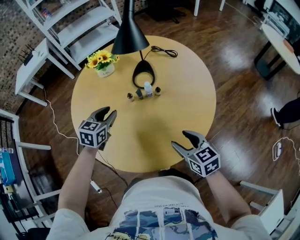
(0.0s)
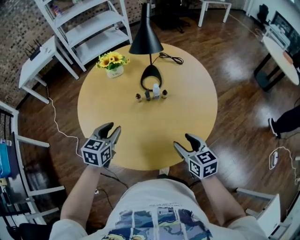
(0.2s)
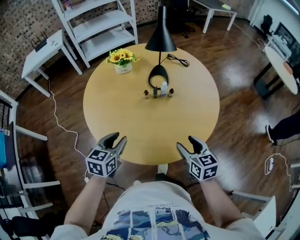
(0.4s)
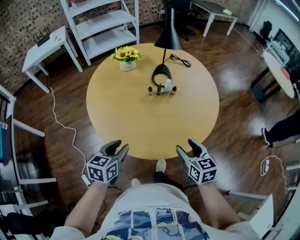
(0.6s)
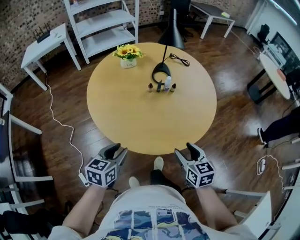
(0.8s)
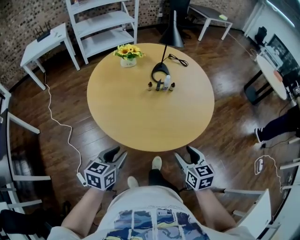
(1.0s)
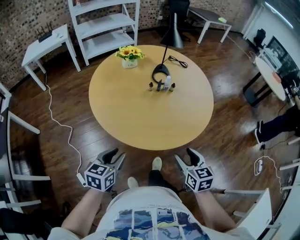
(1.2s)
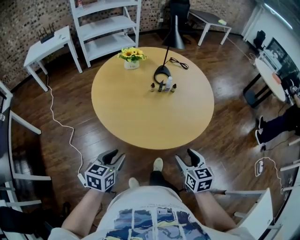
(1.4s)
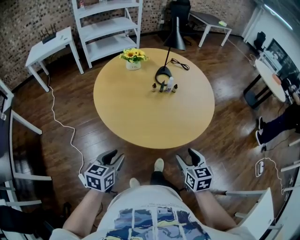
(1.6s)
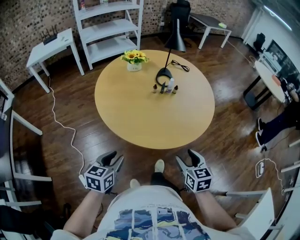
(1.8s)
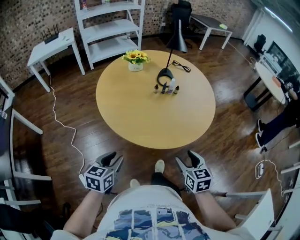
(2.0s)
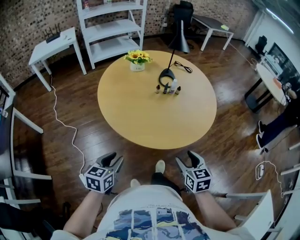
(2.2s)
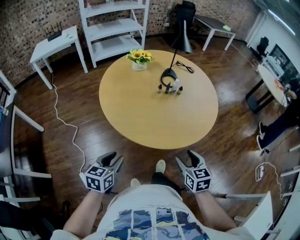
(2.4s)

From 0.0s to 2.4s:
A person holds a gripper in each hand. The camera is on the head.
From 0.0s to 1.2s: The right gripper heads backward and to the left, covering some 25 cm. The left gripper shifts approximately 40 cm backward.
From 1.2s to 2.4s: The right gripper ends up about 5 cm from where it was. The left gripper travels to the left and backward by approximately 10 cm.

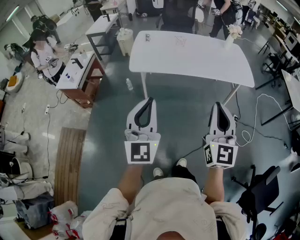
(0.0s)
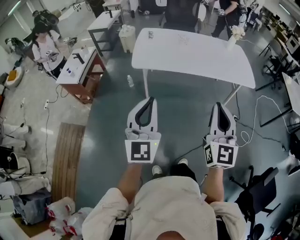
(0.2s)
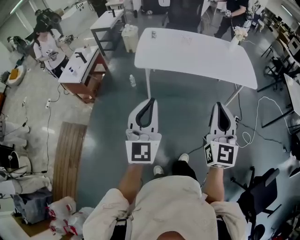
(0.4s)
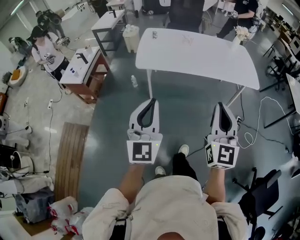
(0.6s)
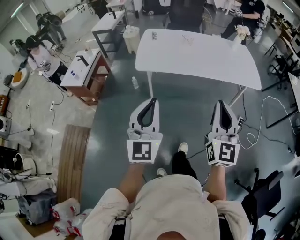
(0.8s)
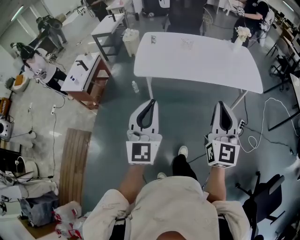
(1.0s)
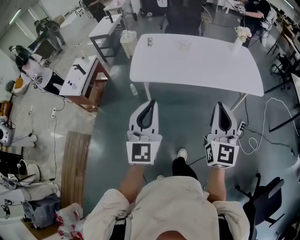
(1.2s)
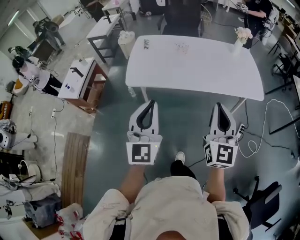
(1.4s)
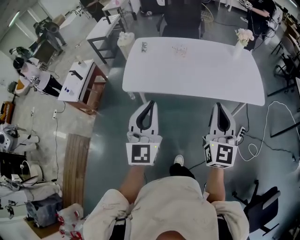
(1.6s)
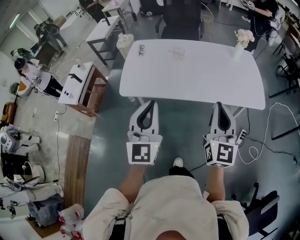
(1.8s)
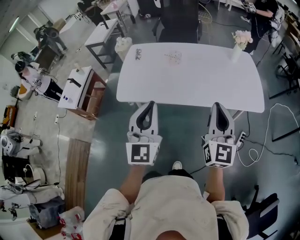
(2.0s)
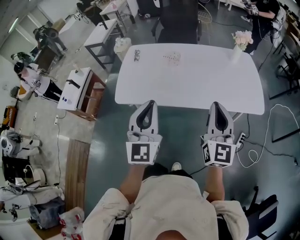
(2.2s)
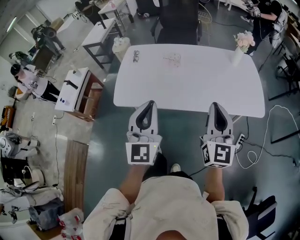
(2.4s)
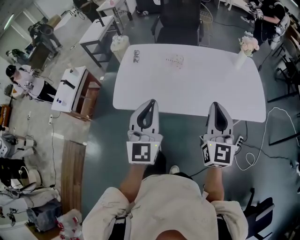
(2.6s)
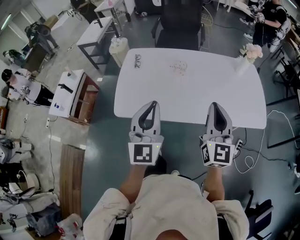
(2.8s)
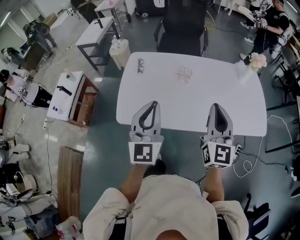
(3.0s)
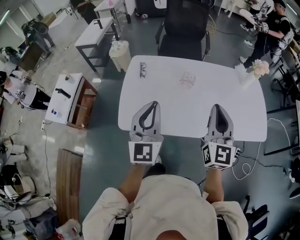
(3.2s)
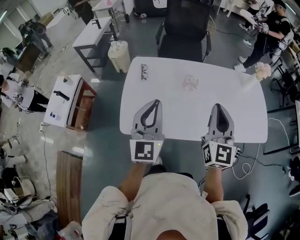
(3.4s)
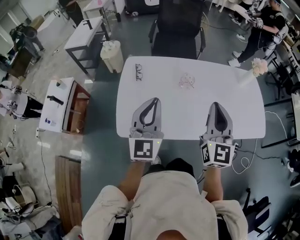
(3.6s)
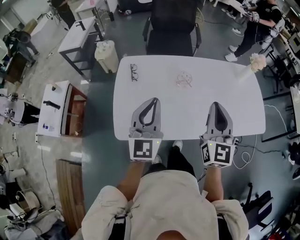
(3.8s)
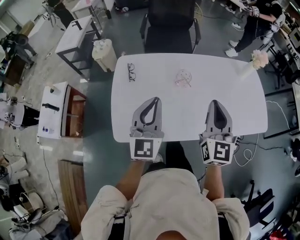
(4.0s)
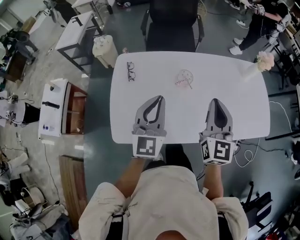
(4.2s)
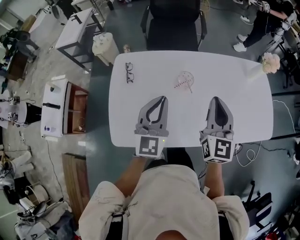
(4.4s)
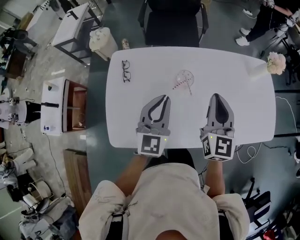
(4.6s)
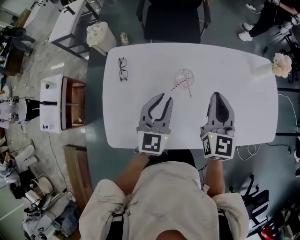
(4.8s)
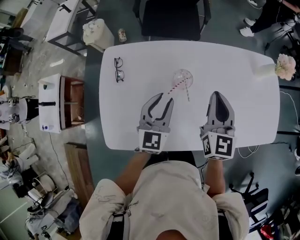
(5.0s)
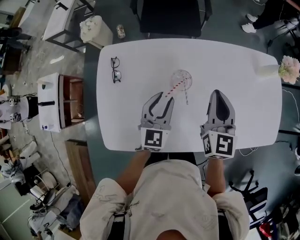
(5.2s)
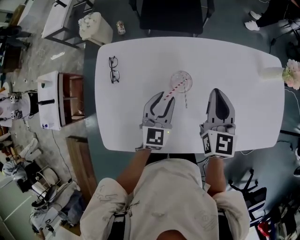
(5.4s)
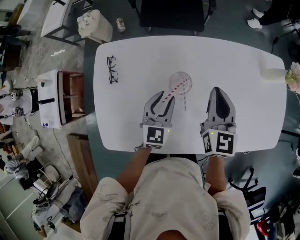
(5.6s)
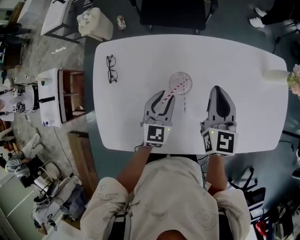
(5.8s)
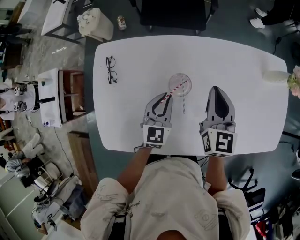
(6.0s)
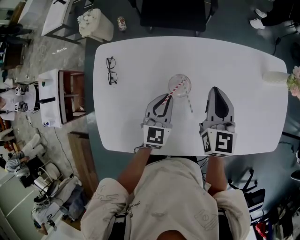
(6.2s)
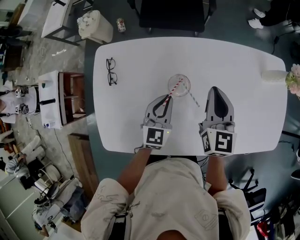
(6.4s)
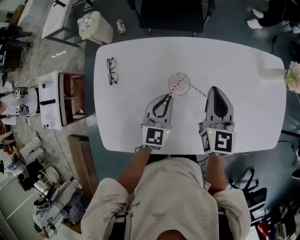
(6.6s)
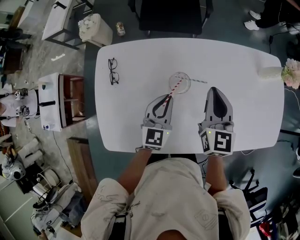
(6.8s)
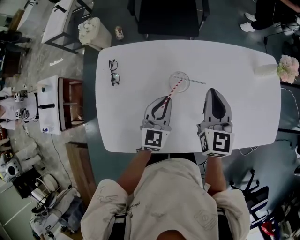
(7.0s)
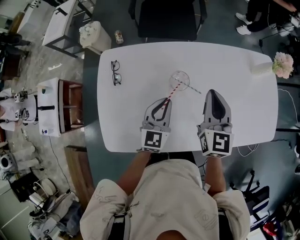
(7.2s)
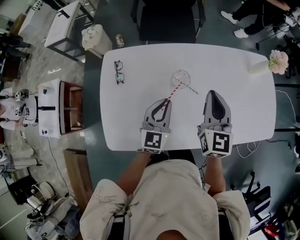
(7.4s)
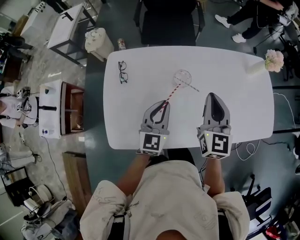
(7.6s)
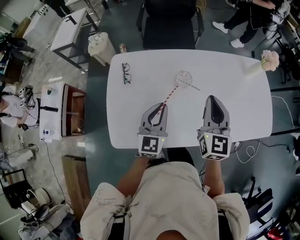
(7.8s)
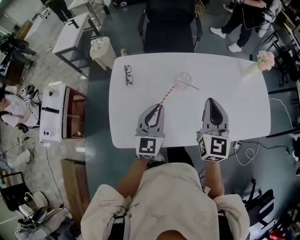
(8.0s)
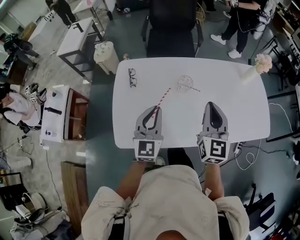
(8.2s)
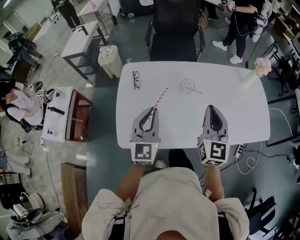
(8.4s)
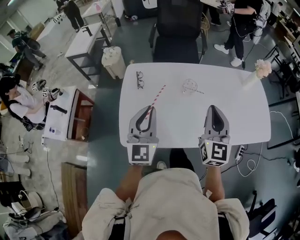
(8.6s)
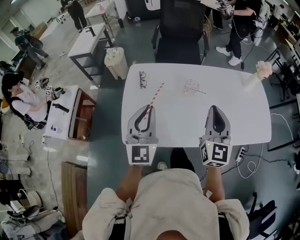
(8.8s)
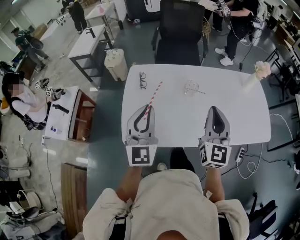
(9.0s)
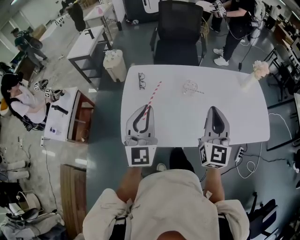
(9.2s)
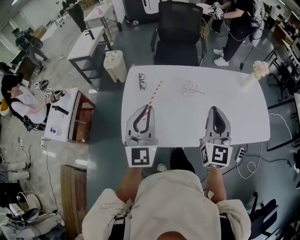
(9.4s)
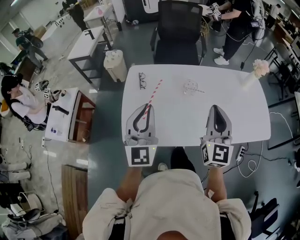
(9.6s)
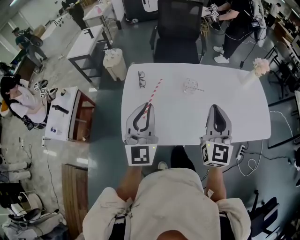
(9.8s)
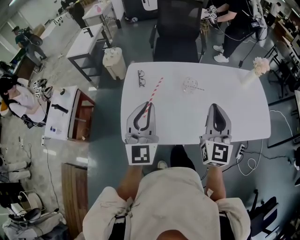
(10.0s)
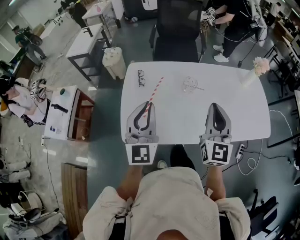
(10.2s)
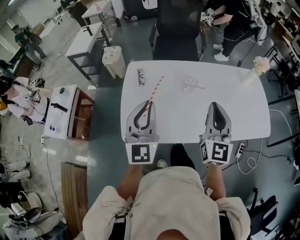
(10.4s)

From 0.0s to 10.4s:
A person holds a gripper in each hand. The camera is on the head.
From 0.0s to 1.4s: Both grippers travel together forward, approximately 20 cm.
From 1.4s to 3.0s: The two grippers go roughly 30 cm forward.
From 3.0s to 4.4s: The right gripper moves forward, some 20 cm; the left gripper shifts some 25 cm forward and downward.
From 4.4s to 6.0s: The left gripper moves downward and forward, roughly 25 cm, changes its angle by about 20 degrees, and opens, then closes once more. The right gripper shifts some 20 cm forward and downward.
From 6.0s to 7.4s: The right gripper shifts some 10 cm backward and upward, while the left gripper shifts roughly 10 cm upward and backward.
From 7.4s to 9.0s: The left gripper heads upward, backward and to the left, covering roughly 30 cm, and turns by about 30 degrees. The right gripper goes some 20 cm backward and upward.
From 9.0s to 10.4s: Both grippers stay about where they are.

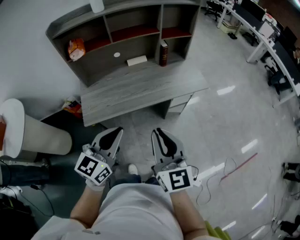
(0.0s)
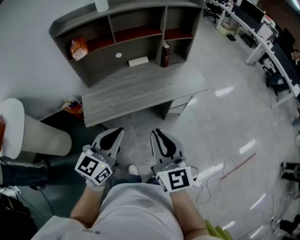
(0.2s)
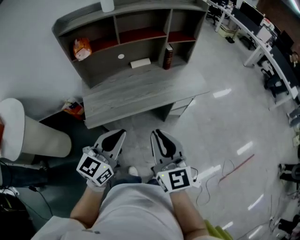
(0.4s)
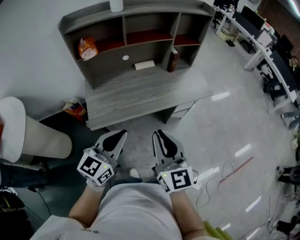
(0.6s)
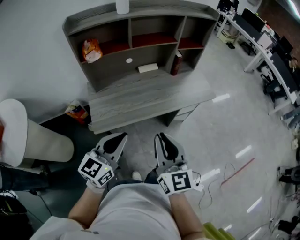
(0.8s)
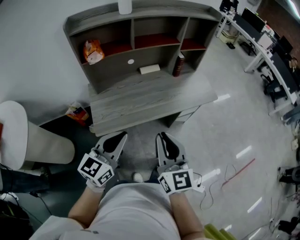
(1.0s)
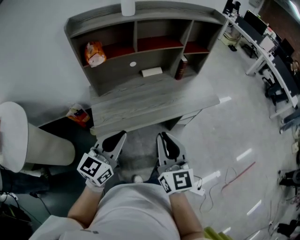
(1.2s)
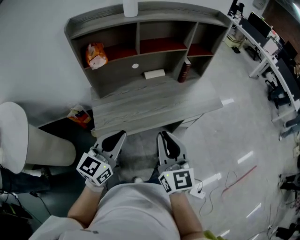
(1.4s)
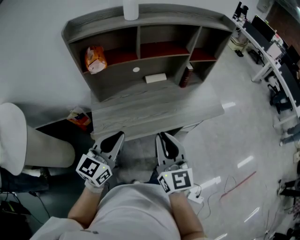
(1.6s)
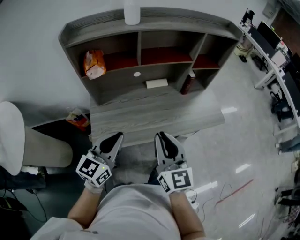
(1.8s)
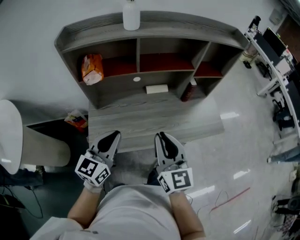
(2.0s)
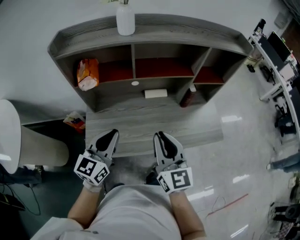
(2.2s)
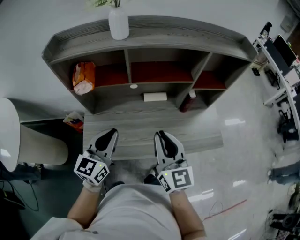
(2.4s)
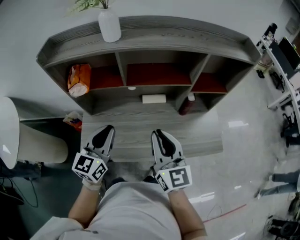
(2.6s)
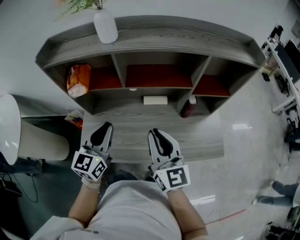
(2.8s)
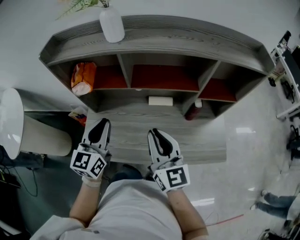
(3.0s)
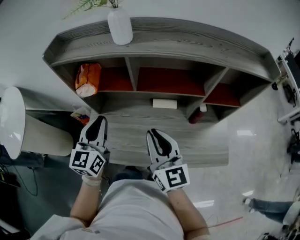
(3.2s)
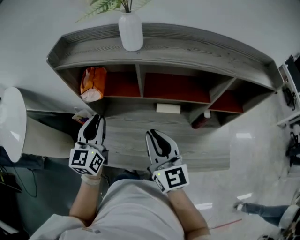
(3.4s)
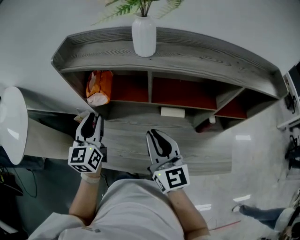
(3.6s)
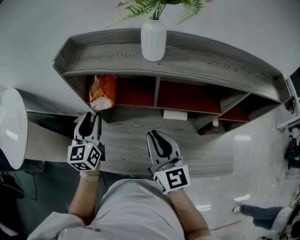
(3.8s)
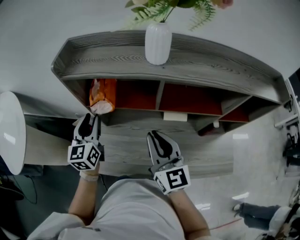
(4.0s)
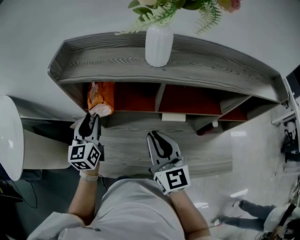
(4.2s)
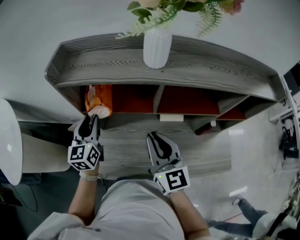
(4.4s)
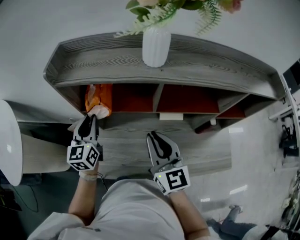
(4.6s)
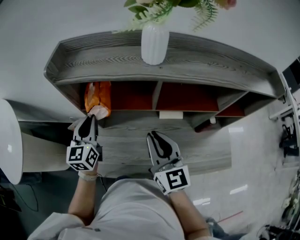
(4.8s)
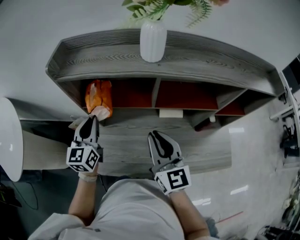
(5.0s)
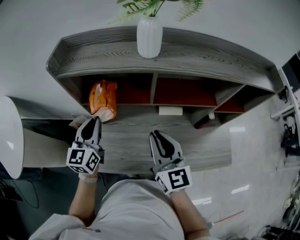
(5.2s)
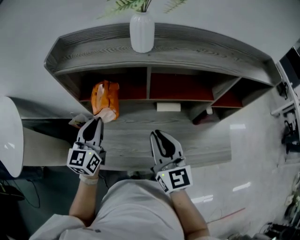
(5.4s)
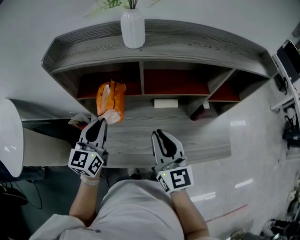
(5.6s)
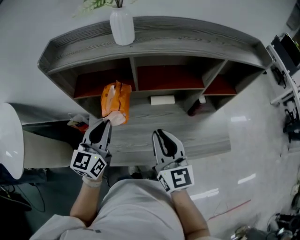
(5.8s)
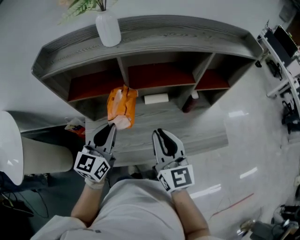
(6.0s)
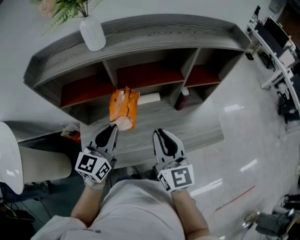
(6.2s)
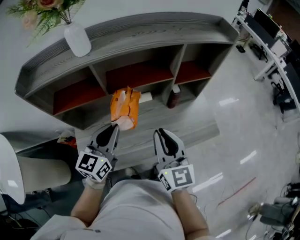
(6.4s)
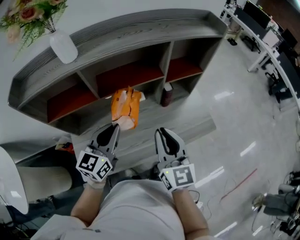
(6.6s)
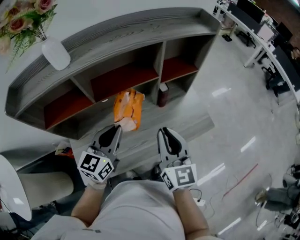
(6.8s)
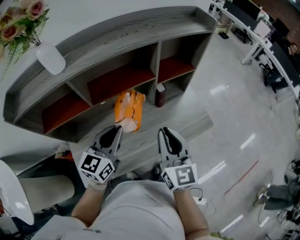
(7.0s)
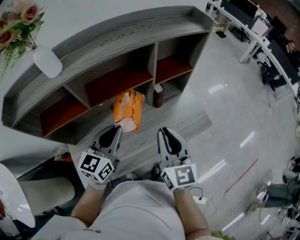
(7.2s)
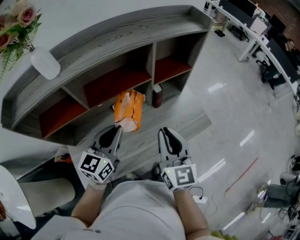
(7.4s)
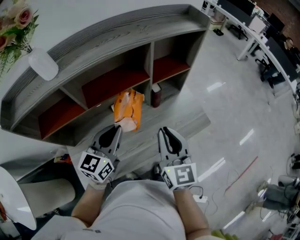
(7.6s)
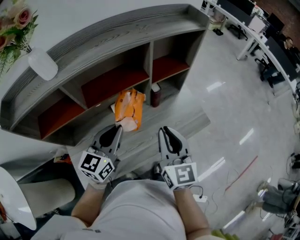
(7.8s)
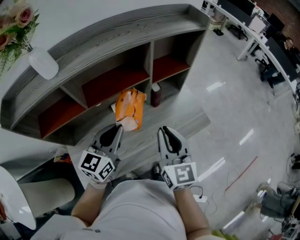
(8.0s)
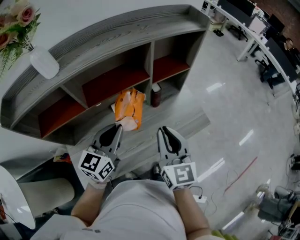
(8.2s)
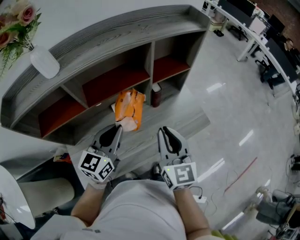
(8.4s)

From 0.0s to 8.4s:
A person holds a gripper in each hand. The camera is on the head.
From 0.0s to 1.4s: Both grippers move to the left and forward, approximately 15 cm.
From 1.4s to 2.8s: The left gripper ends up approximately 25 cm from where it was, and turns by roughly 30 degrees; the right gripper ends up some 30 cm from where it was, and swivels roughly 20 degrees.
From 2.8s to 4.2s: The right gripper moves forward and to the left, approximately 20 cm. Meanwhile the left gripper heads to the left and forward, covering about 25 cm, turns by some 20 degrees, and opens up.
From 4.2s to 5.6s: Both grippers travel together backward and to the right, roughly 10 cm. The left gripper closes its fingers.
From 5.6s to 7.0s: The left gripper shifts by roughly 25 cm, and rotates roughly 30 degrees. Meanwhile the right gripper changes place by roughly 20 cm, and swivels about 30 degrees.
From 7.0s to 8.4s: The grippers stay close to where they were, moving slightly.

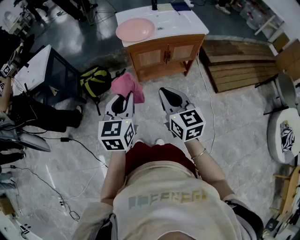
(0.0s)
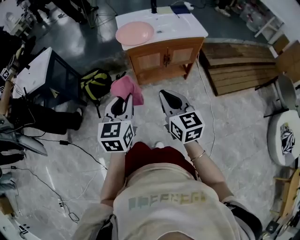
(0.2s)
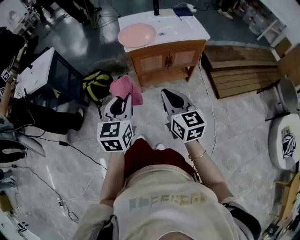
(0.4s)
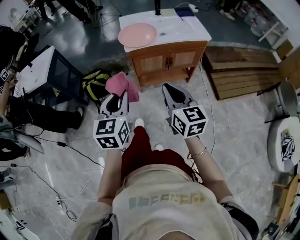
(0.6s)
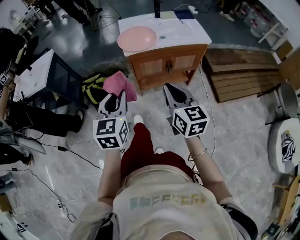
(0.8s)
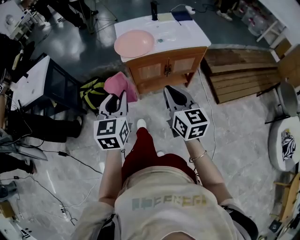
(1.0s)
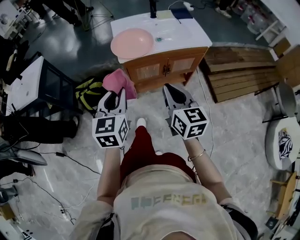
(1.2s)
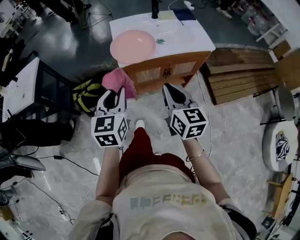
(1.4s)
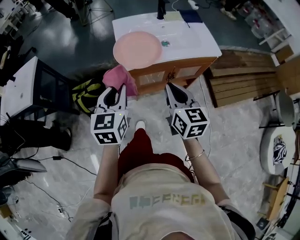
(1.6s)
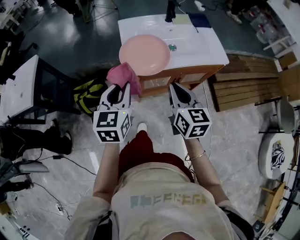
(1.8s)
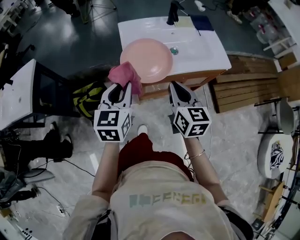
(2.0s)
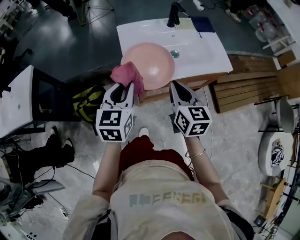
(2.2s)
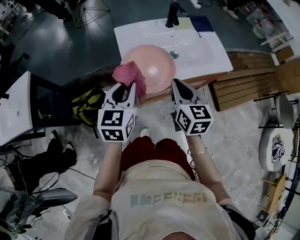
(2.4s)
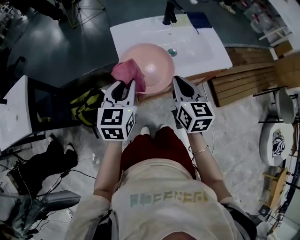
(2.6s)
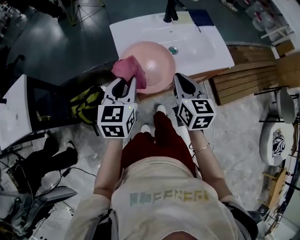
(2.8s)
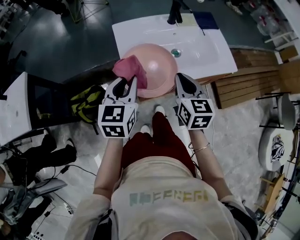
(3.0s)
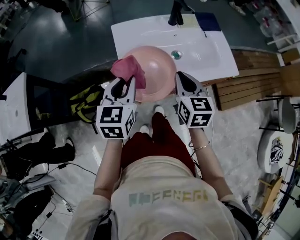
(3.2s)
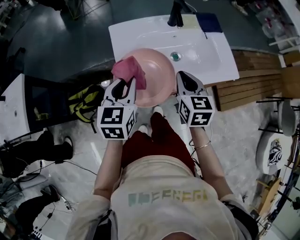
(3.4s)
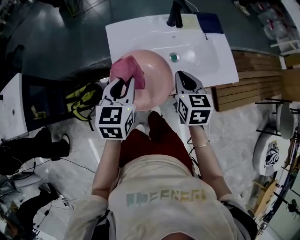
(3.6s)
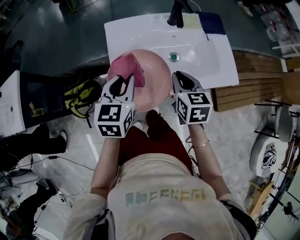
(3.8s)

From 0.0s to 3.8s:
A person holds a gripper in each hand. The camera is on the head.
From 0.0s to 1.2s: The two grippers go roughly 15 cm forward.
From 1.2s to 2.6s: The grippers both shift forward by approximately 30 cm.
From 2.6s to 3.8s: The left gripper shifts some 10 cm forward. Meanwhile the right gripper shifts approximately 15 cm forward and downward.
